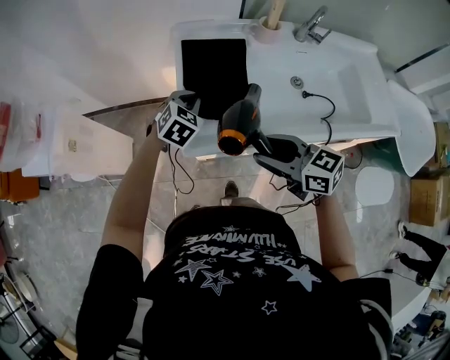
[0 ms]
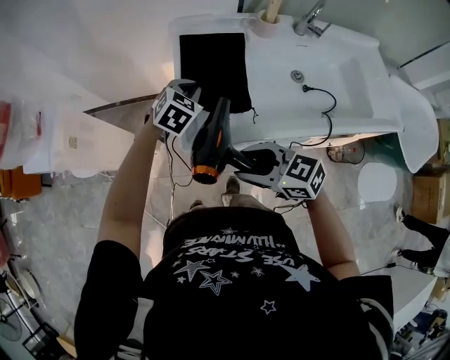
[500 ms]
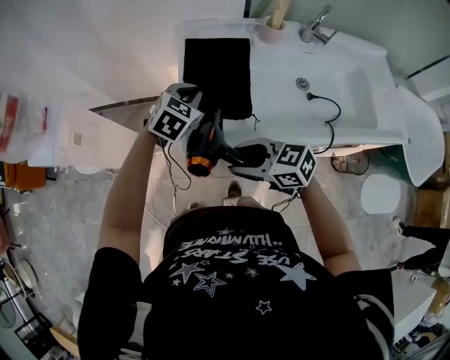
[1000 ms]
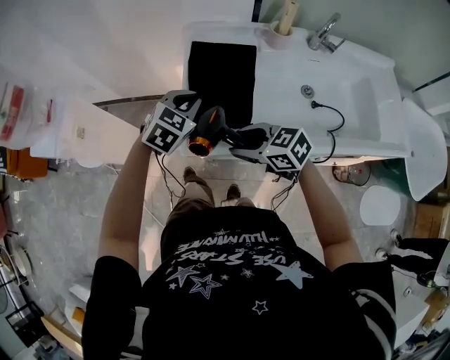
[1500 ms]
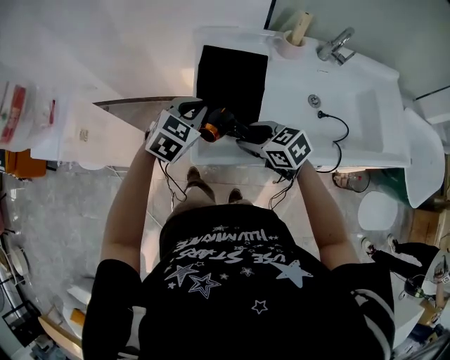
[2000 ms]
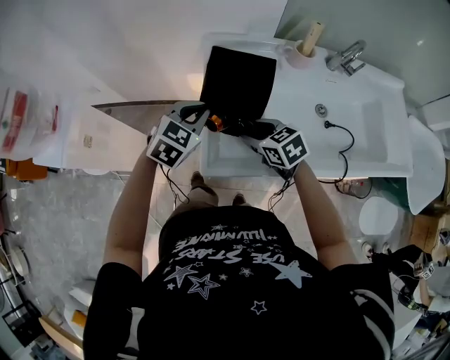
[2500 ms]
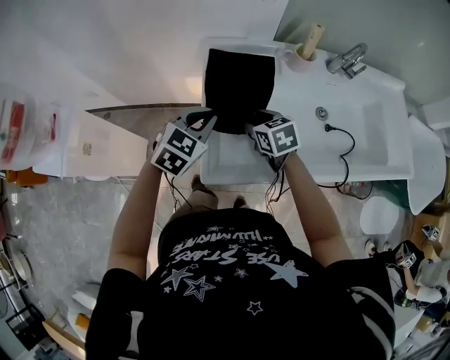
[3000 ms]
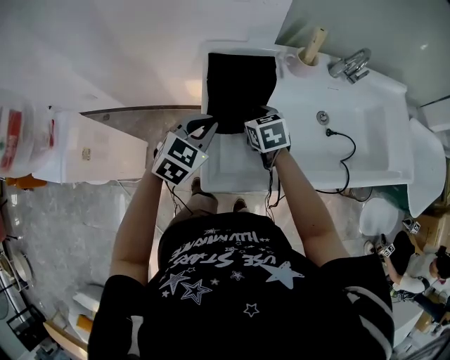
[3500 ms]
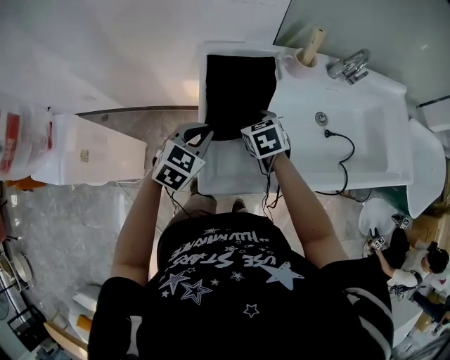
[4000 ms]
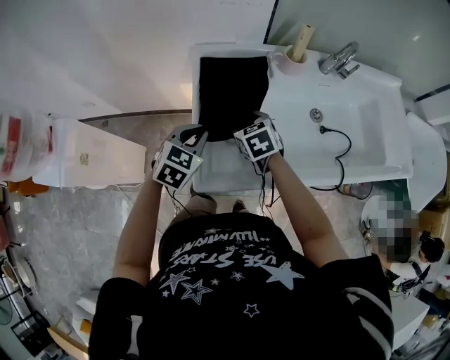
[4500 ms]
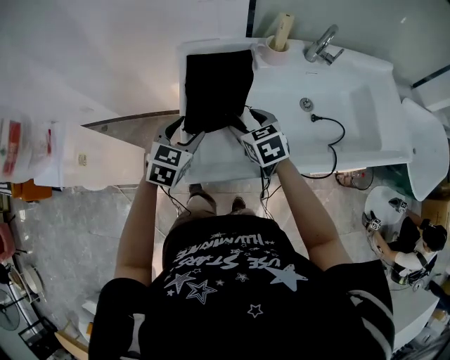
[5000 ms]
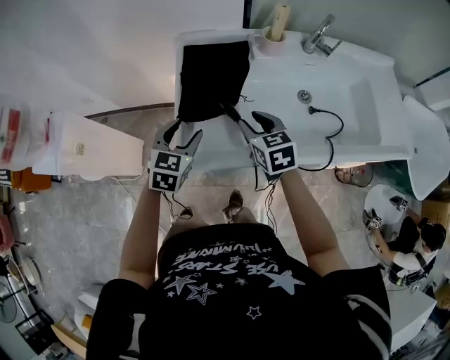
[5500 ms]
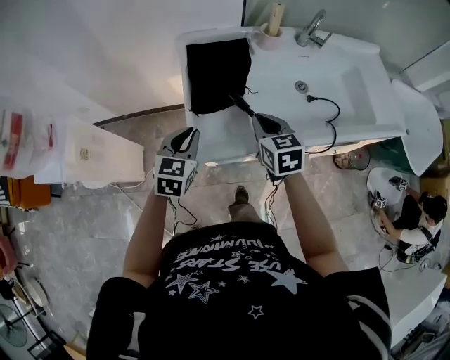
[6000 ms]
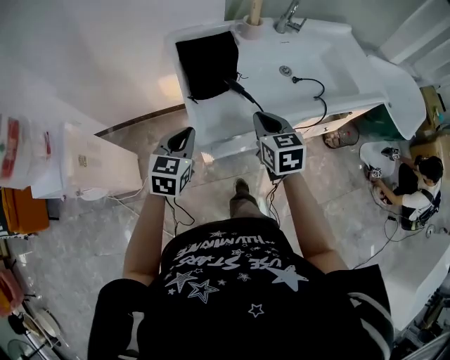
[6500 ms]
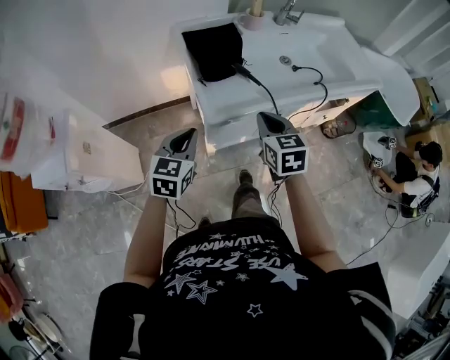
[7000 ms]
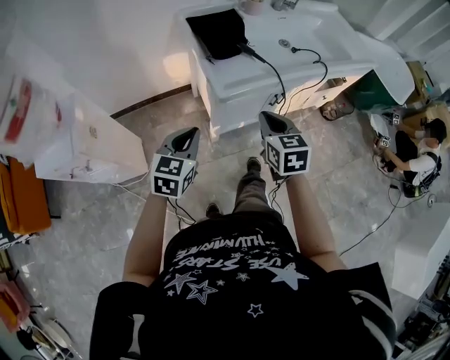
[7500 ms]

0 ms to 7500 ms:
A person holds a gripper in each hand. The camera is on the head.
0 ms to 2000 ms: The right gripper goes some 15 cm forward and downward, and turns by roughly 20 degrees; the left gripper shifts some 5 cm upward.
2000 ms to 4000 ms: The right gripper heads forward, covering about 15 cm, and rotates roughly 30 degrees.
4000 ms to 5500 ms: The right gripper shifts about 15 cm backward, to the right and upward, and opens, then closes again, while the left gripper is displaced backward by roughly 5 cm, and opens its fingers.
5500 ms to 7500 ms: The right gripper changes place by some 30 cm, swivels roughly 30 degrees, and closes up; the left gripper ends up about 30 cm from where it was, turns by some 20 degrees, and closes up.

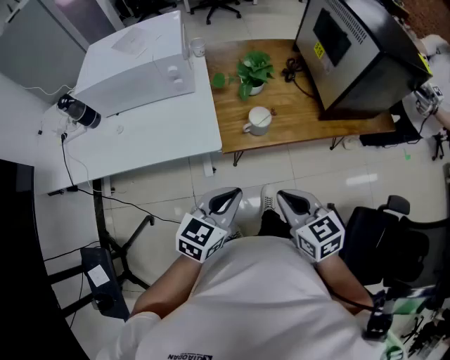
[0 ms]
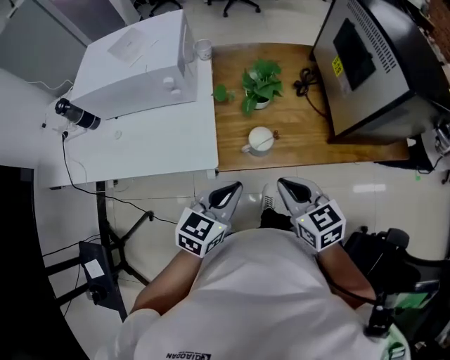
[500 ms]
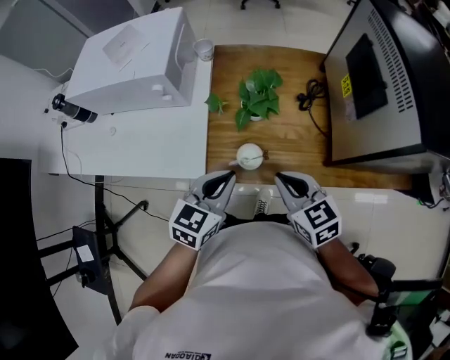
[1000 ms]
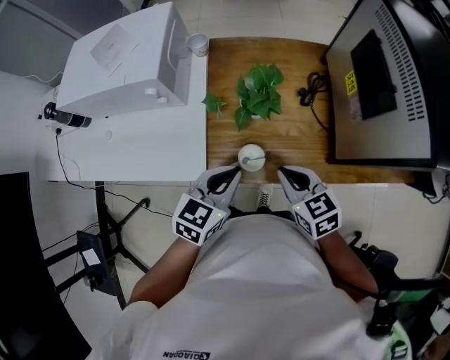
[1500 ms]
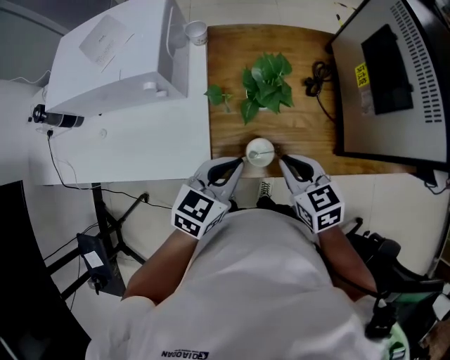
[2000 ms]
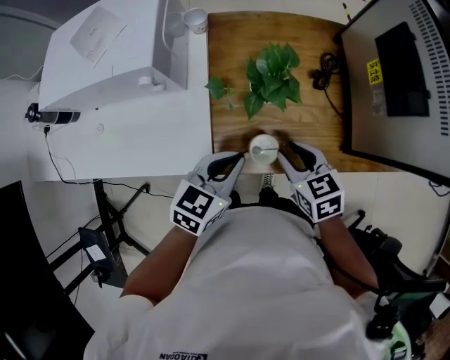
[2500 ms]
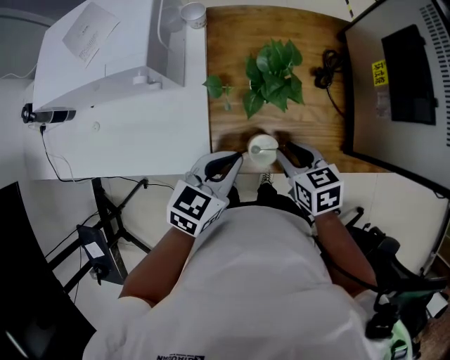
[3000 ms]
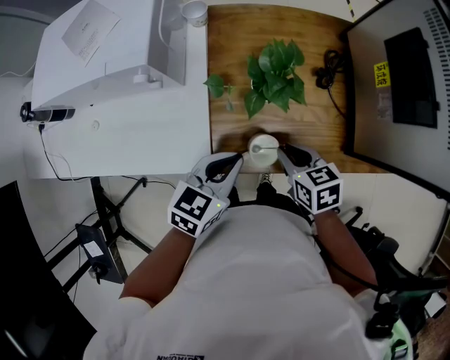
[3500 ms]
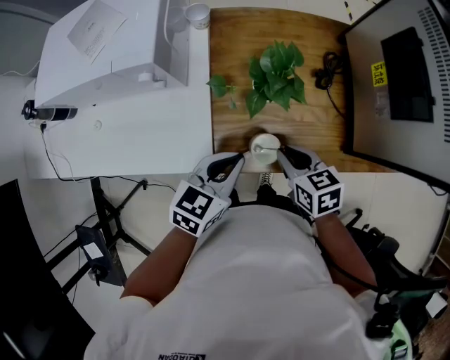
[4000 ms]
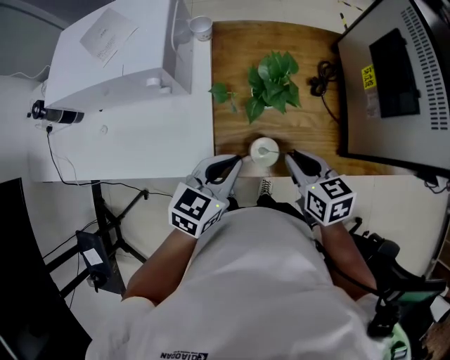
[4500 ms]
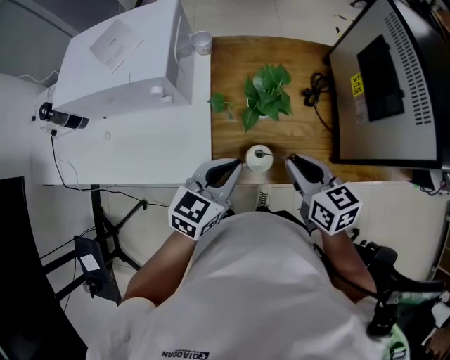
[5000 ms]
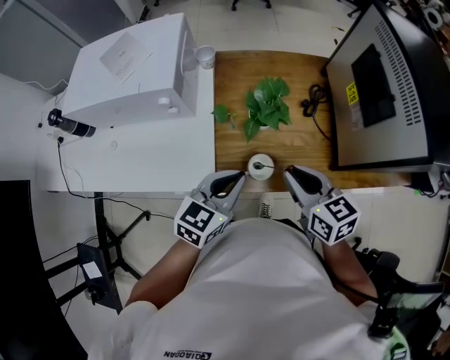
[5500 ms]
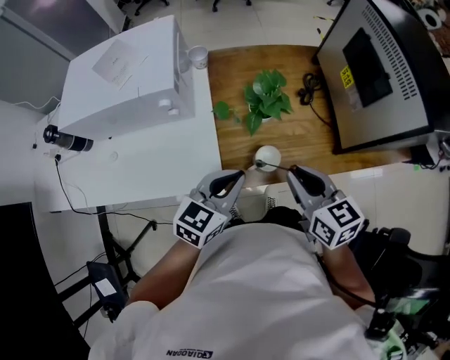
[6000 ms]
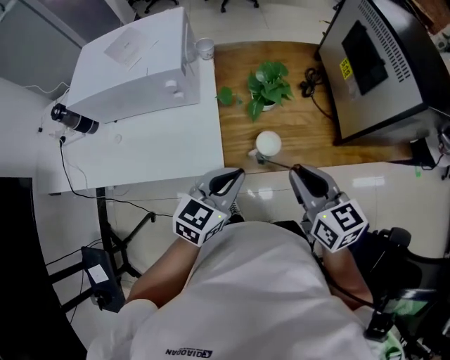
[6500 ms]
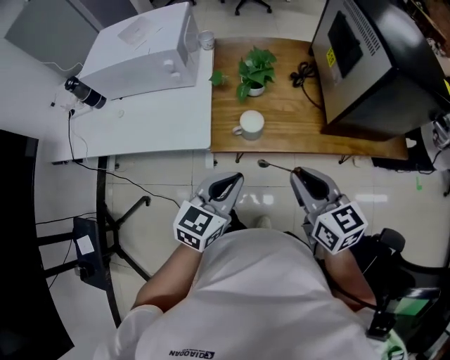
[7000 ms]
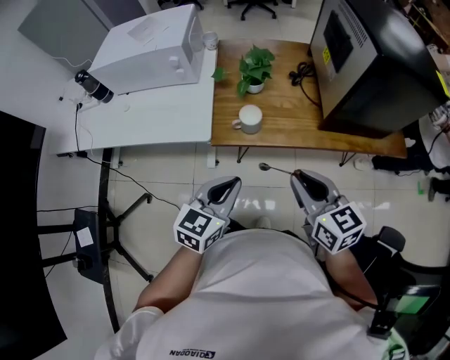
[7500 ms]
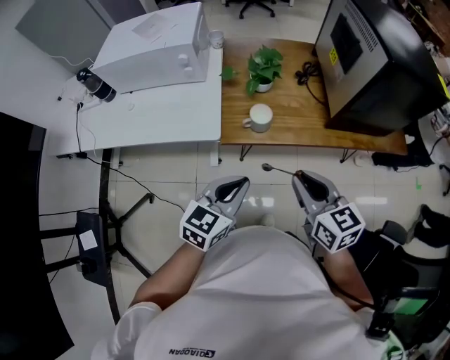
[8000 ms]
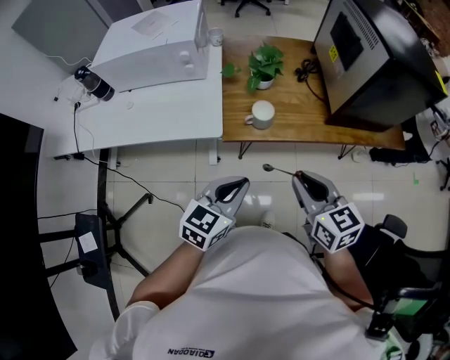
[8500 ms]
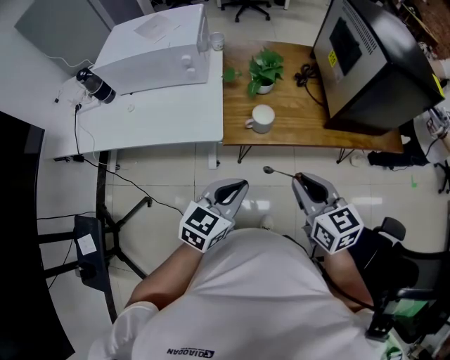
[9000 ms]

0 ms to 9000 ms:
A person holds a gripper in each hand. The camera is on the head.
0 ms to 2000 ms: The grippers both shift forward by about 25 cm.
4500 ms to 7000 ms: The left gripper moves backward, approximately 20 cm, while the right gripper goes about 20 cm backward and upward.
7000 ms to 9000 ms: Both grippers move backward, roughly 5 cm.

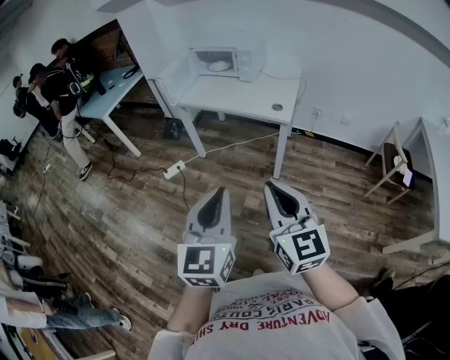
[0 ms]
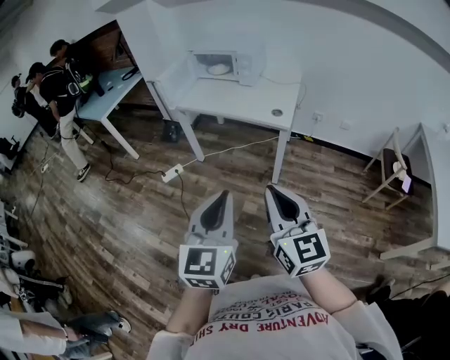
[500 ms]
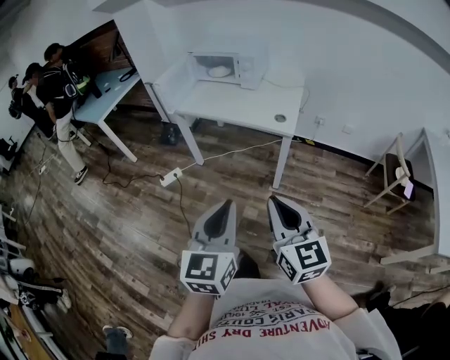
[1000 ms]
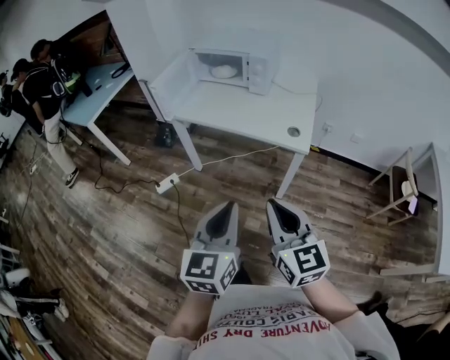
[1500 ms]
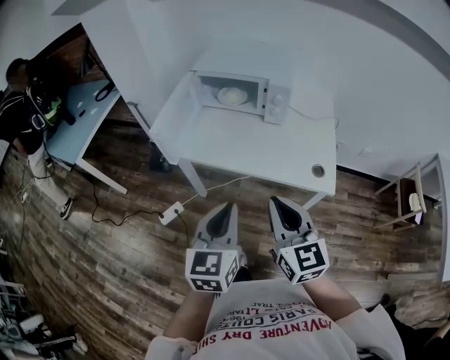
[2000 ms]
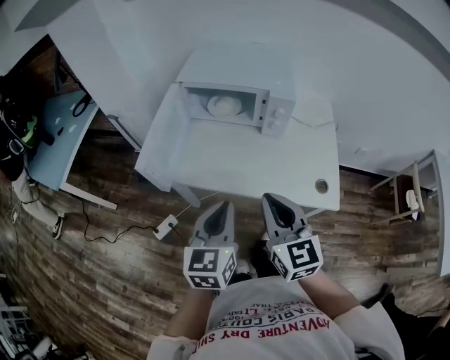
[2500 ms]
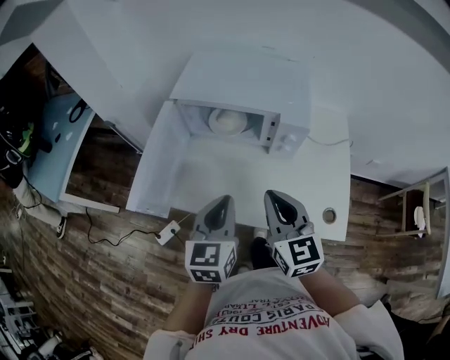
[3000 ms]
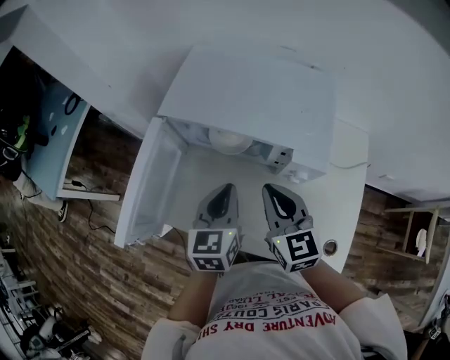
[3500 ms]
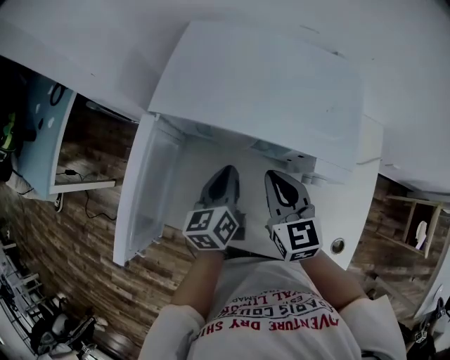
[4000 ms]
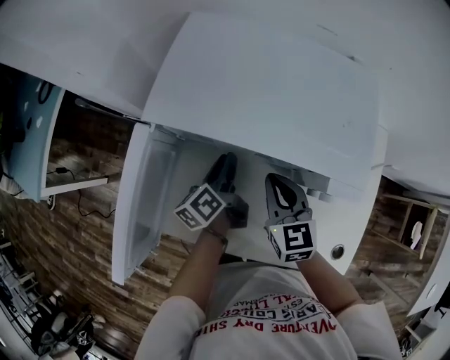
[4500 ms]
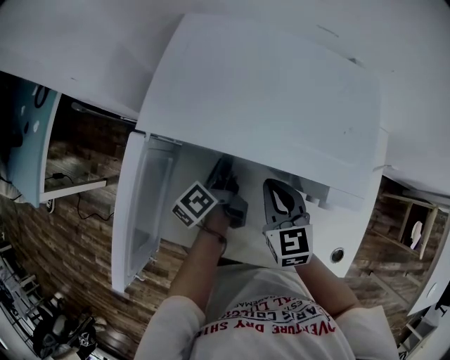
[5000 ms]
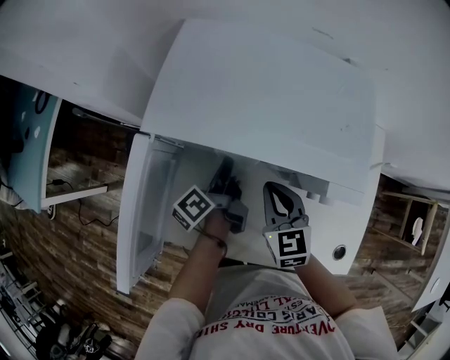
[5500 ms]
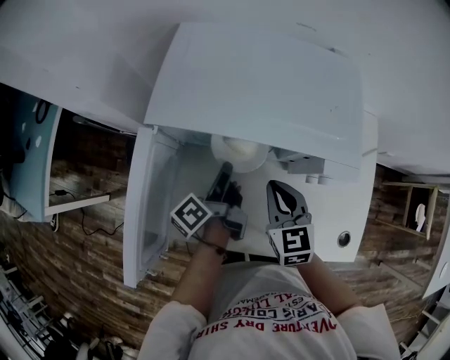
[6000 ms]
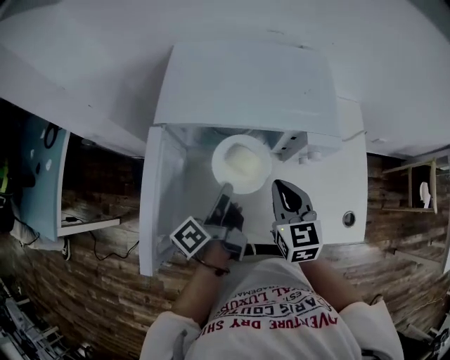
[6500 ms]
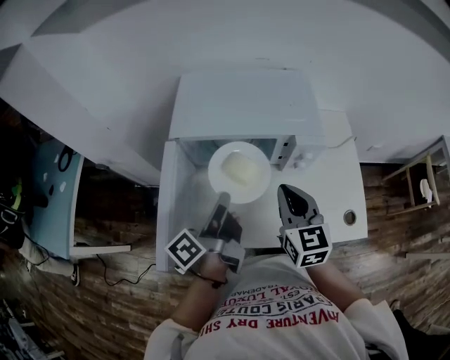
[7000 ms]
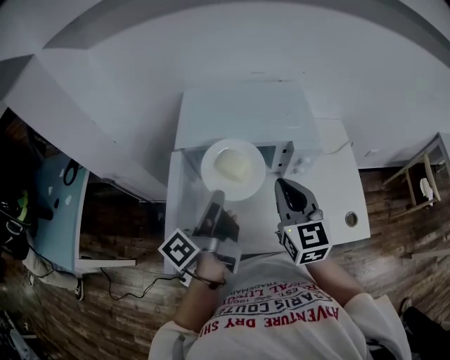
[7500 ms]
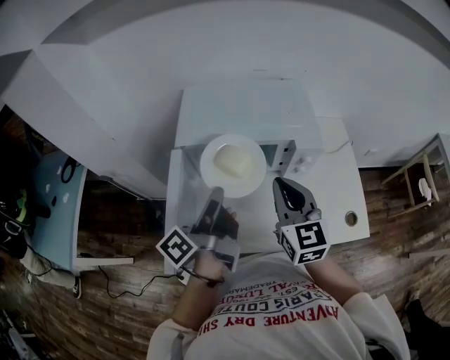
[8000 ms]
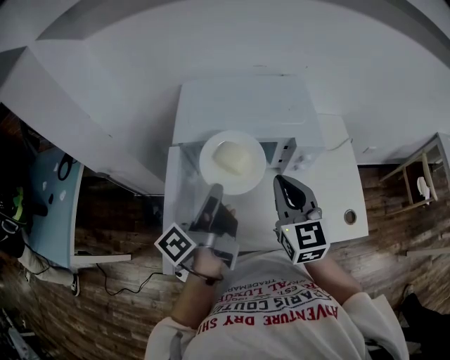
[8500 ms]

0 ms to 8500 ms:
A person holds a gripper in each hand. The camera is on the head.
0 ms to 2000 ms: The two grippers travel together, forward, approximately 50 cm.
2000 ms to 4000 ms: The two grippers travel together, forward, about 50 cm. The left gripper rotates approximately 30 degrees.
4000 ms to 6500 ms: Both grippers travel together backward, approximately 5 cm. The left gripper rolls counterclockwise, seen from behind, by approximately 50 degrees, and opens, then closes again.
6500 ms to 8500 ms: Both grippers travel together upward, about 15 cm.

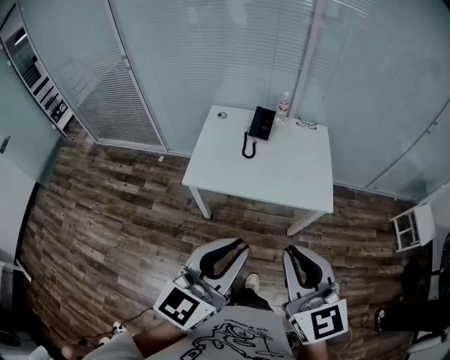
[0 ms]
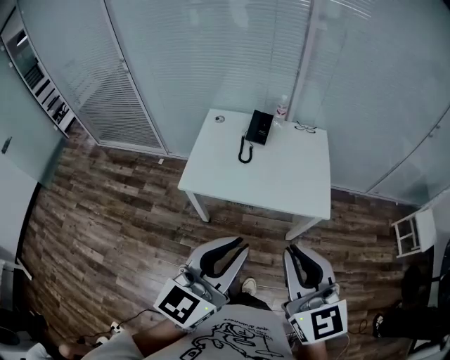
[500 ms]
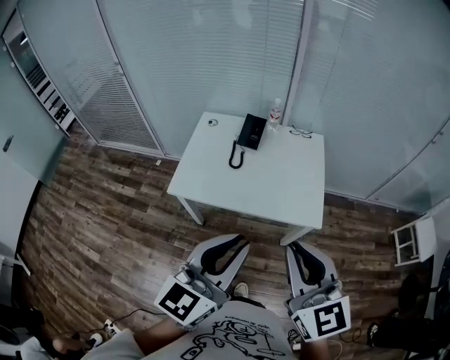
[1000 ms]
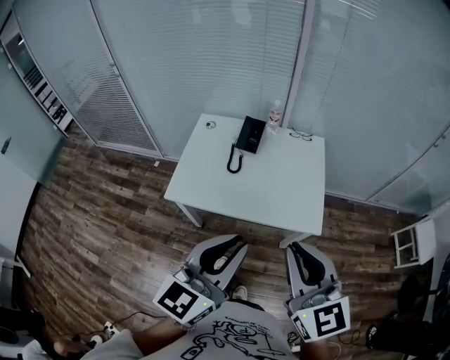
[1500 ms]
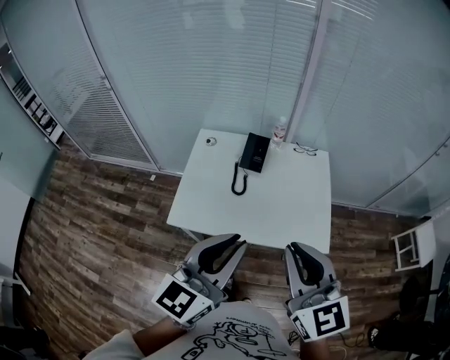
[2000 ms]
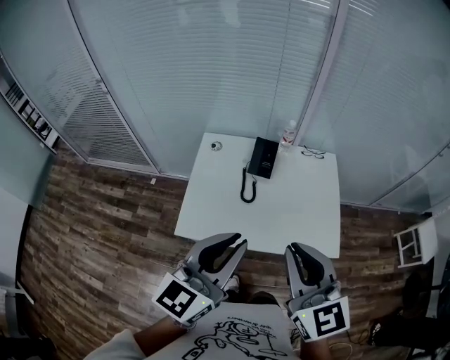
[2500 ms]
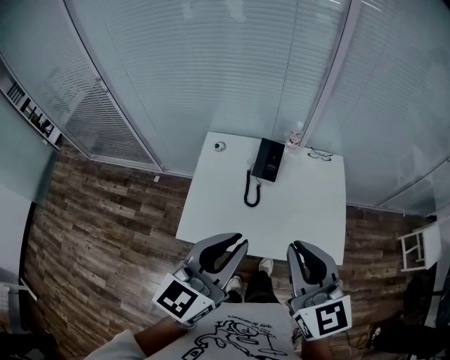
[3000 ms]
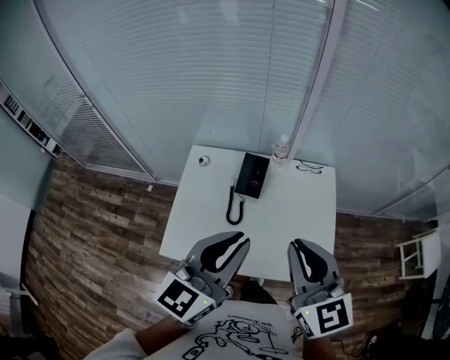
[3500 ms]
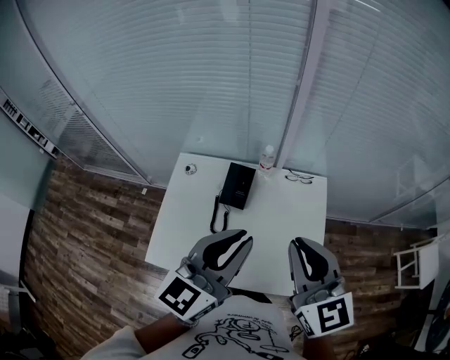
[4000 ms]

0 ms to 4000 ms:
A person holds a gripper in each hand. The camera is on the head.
0 ms to 2000 ms: The two grippers go approximately 20 cm forward.
2000 ms to 4000 ms: The grippers both shift forward by some 25 cm.
